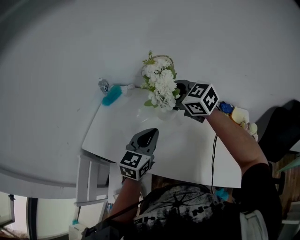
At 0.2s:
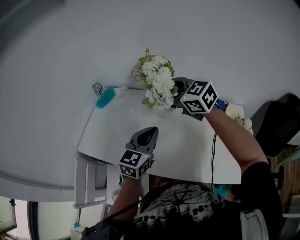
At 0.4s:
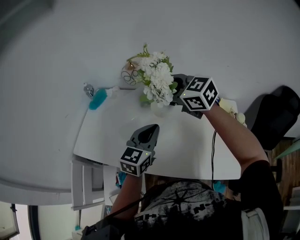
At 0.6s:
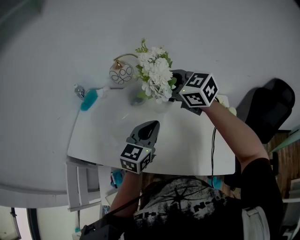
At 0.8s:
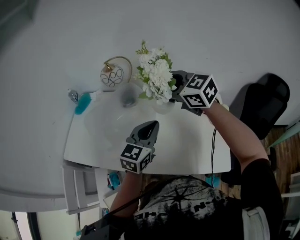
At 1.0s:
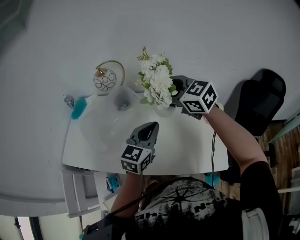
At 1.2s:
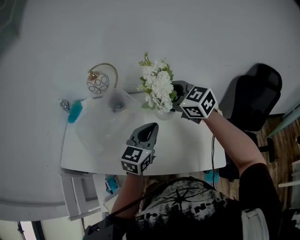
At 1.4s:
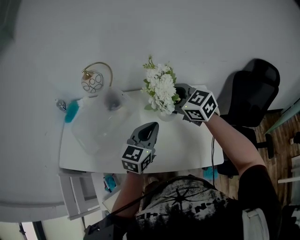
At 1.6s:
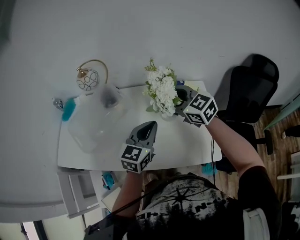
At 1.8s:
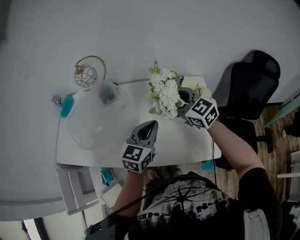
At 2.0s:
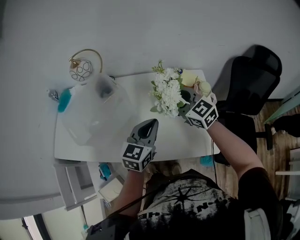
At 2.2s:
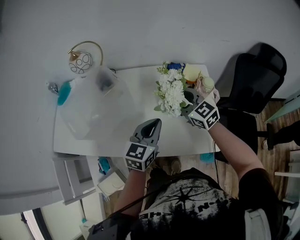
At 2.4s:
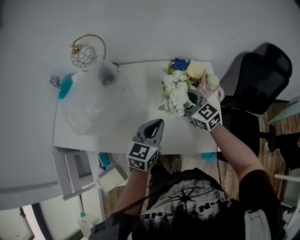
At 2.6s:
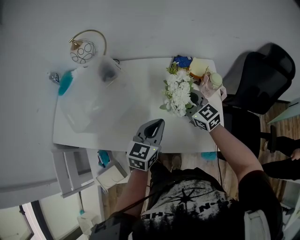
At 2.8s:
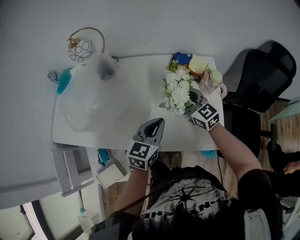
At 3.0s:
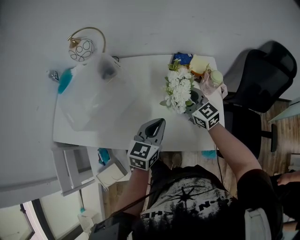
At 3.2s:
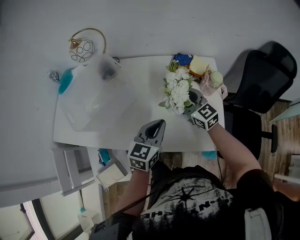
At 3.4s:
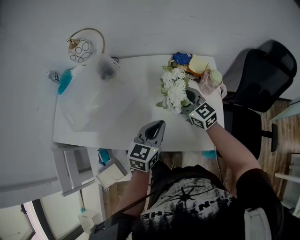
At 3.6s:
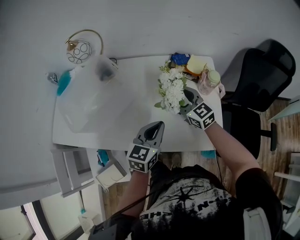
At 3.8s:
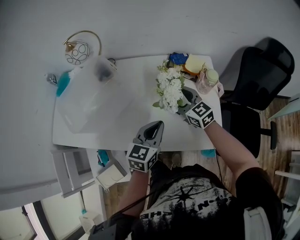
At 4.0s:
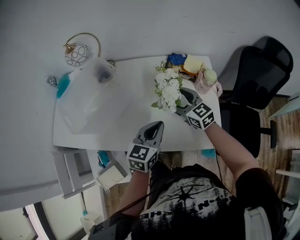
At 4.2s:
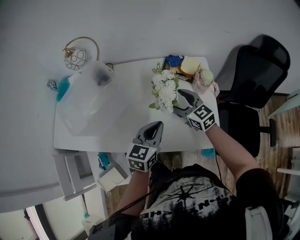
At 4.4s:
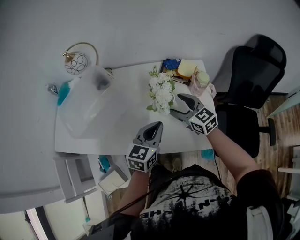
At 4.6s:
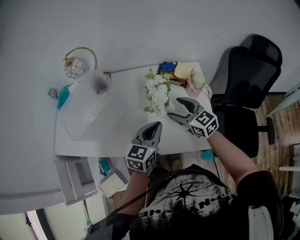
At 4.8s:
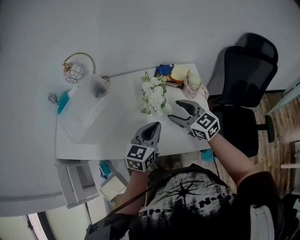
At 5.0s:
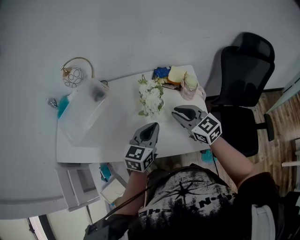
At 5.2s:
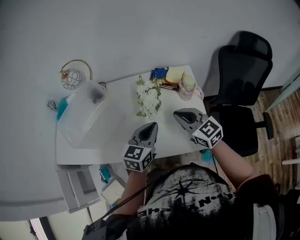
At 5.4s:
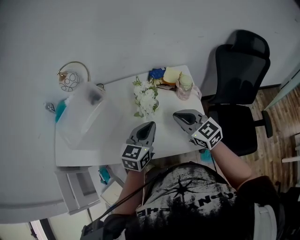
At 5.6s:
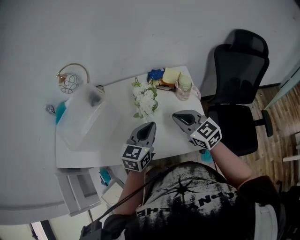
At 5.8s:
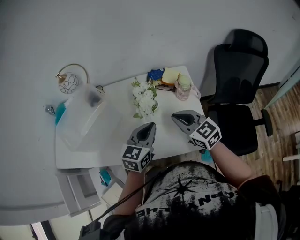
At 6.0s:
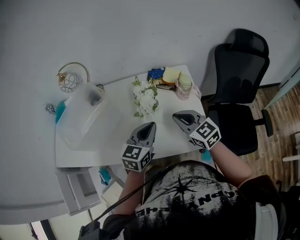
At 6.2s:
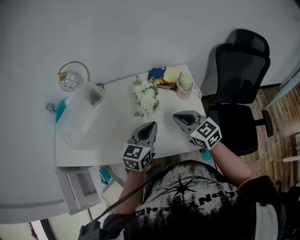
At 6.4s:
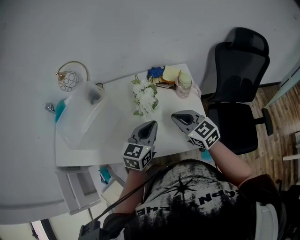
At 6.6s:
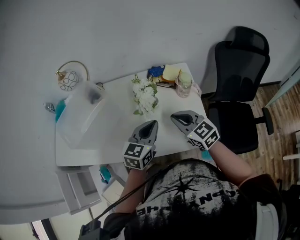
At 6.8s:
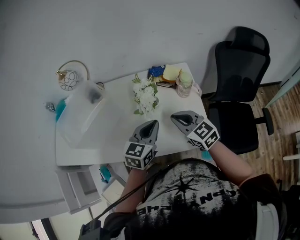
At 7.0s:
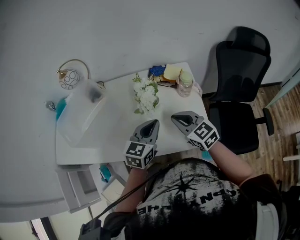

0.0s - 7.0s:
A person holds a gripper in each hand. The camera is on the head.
0.0s - 1.4s: The two grippers go about 25 cm to the right.
1.4s - 2.8s: The right gripper goes approximately 20 cm downward. Meanwhile the left gripper heads downward, covering approximately 10 cm.
2.8s - 4.2s: The grippers move only a little.
4.2s - 5.6s: The right gripper shifts approximately 15 cm backward, upward and to the right, and closes its fingers. The left gripper changes place by roughly 5 cm.
5.6s - 7.0s: The grippers move only a little.

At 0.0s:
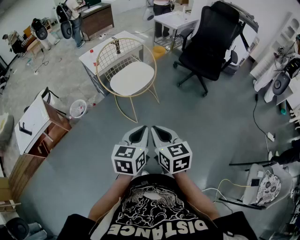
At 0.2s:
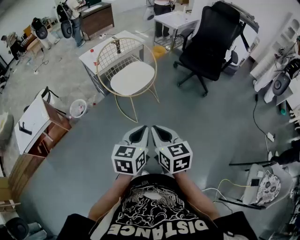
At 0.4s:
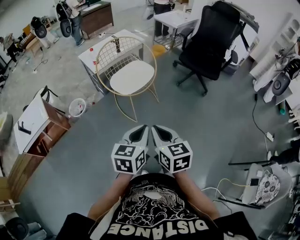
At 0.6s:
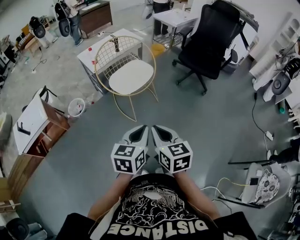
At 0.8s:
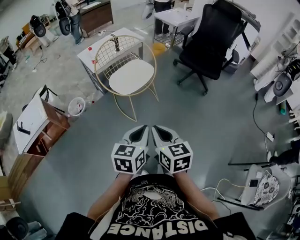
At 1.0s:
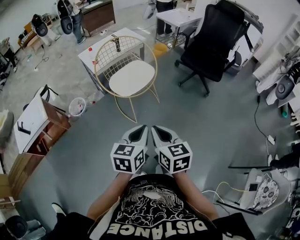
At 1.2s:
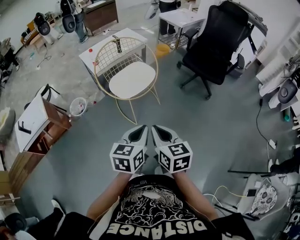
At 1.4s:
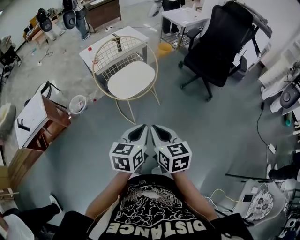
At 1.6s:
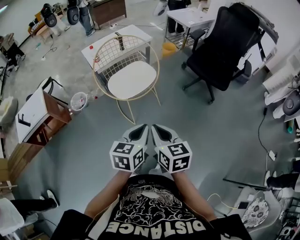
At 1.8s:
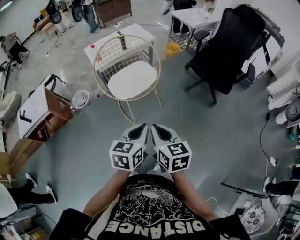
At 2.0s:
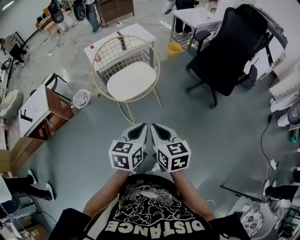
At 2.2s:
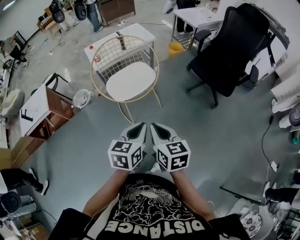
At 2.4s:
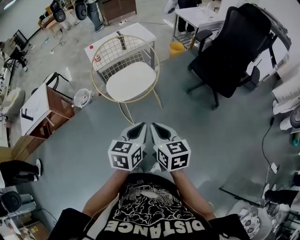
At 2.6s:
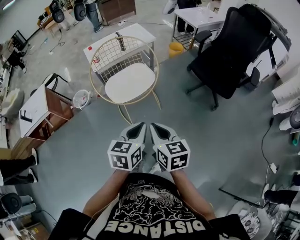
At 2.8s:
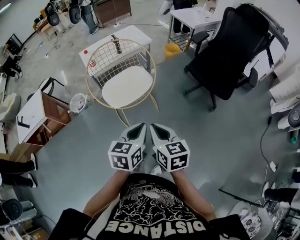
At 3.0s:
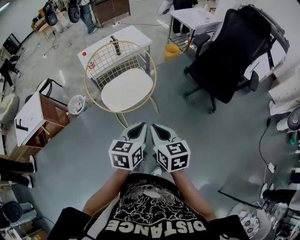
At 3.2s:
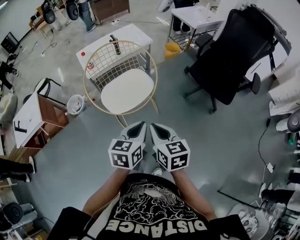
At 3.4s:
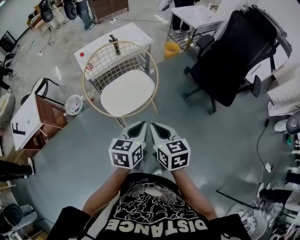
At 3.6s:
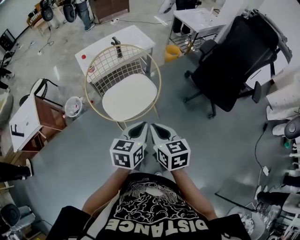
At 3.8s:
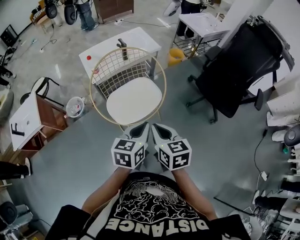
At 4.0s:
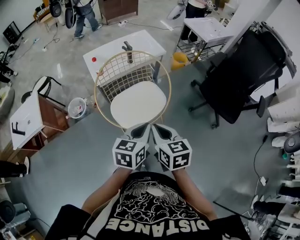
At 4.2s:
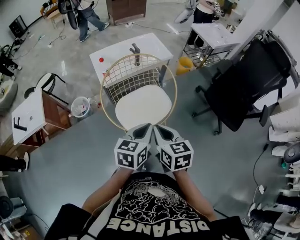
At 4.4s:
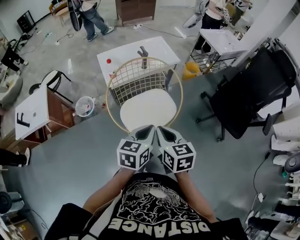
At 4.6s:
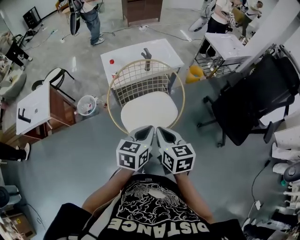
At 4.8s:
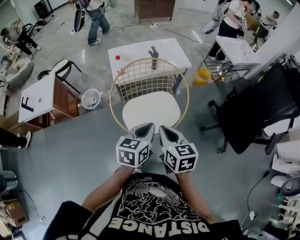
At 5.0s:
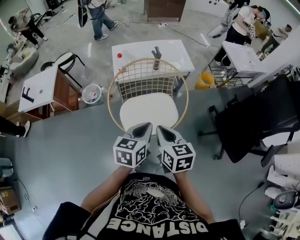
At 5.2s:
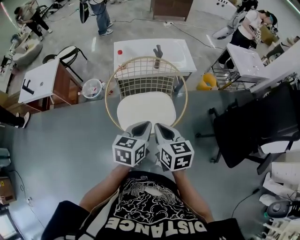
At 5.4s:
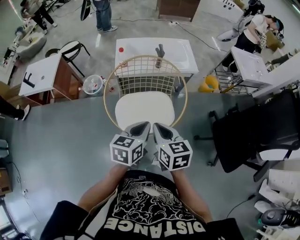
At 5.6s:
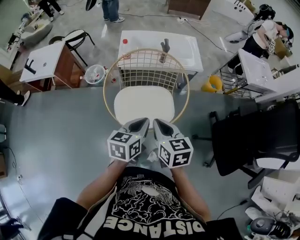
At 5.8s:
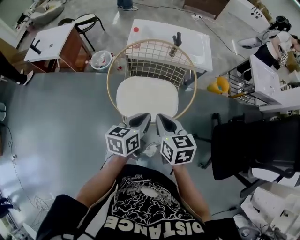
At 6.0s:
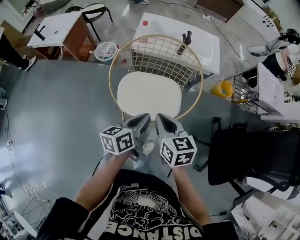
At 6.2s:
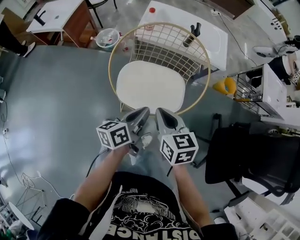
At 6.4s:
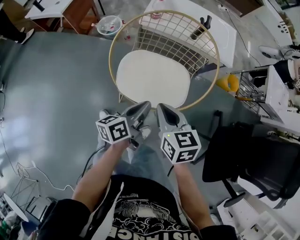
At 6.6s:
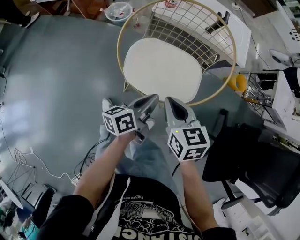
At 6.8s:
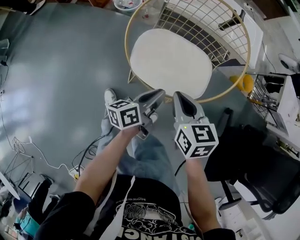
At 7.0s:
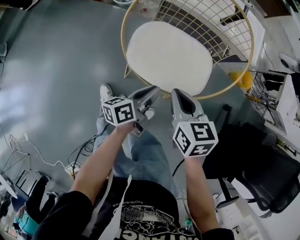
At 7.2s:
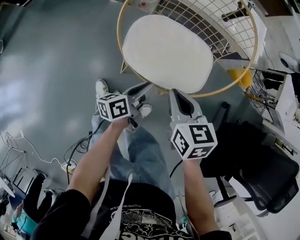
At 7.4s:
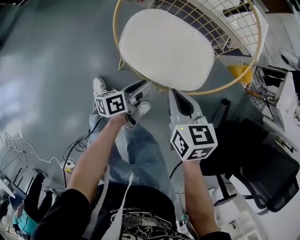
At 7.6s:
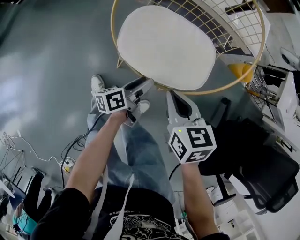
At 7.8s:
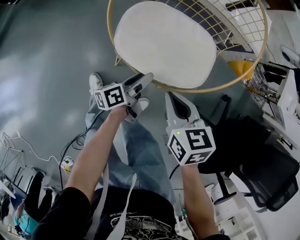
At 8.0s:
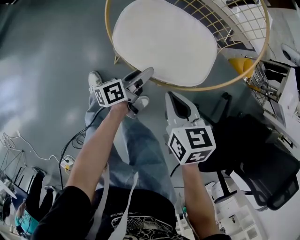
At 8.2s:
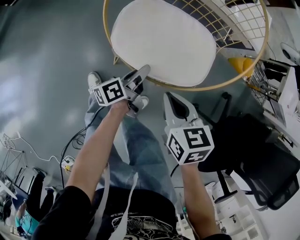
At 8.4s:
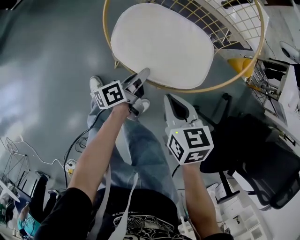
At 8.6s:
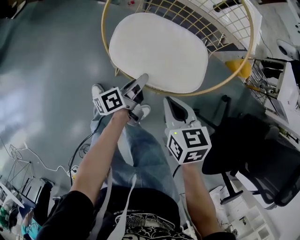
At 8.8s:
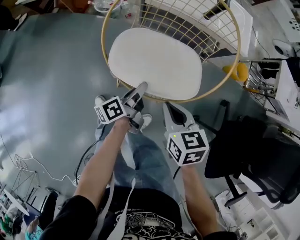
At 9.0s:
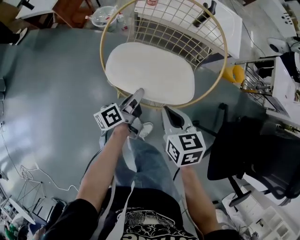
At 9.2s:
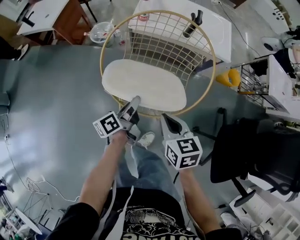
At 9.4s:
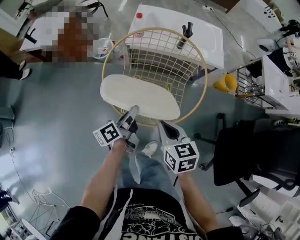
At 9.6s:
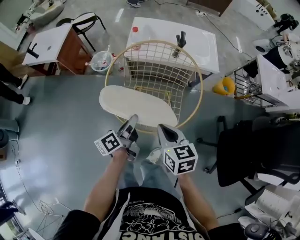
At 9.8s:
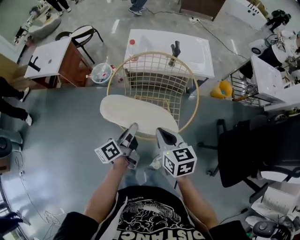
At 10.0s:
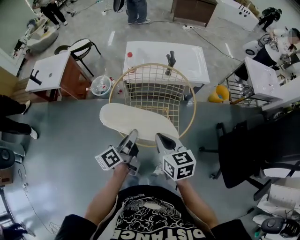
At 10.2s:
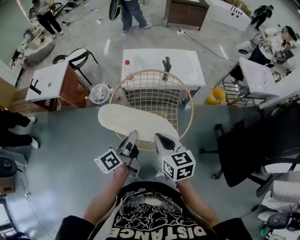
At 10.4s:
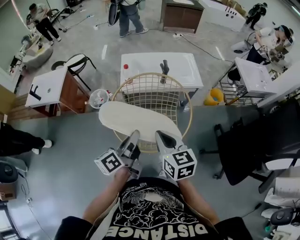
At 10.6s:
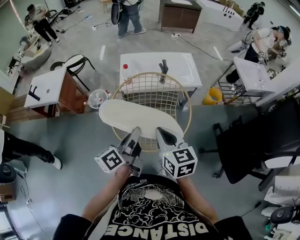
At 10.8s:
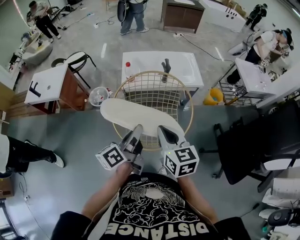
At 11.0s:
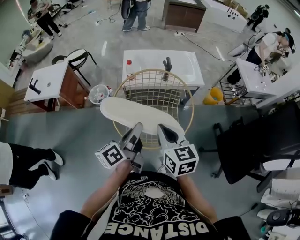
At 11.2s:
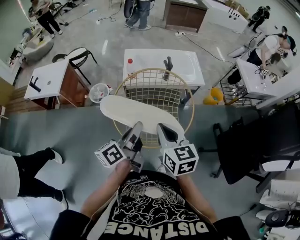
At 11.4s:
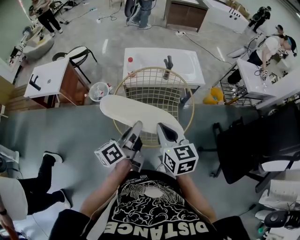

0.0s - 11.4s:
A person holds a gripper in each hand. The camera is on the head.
0.0s - 1.4s: The two grippers go some 10 cm forward.
1.4s - 2.8s: Both grippers travel together forward and to the right, some 15 cm.
2.8s - 4.2s: The two grippers go some 20 cm forward and to the left.
4.2s - 5.6s: The right gripper changes place by roughly 10 cm, and changes its angle by approximately 30 degrees. The left gripper shifts by approximately 10 cm, and turns by some 30 degrees.
5.6s - 7.2s: The right gripper is displaced downward by about 15 cm, and swivels about 20 degrees. Meanwhile the left gripper heads downward, covering about 25 cm, twists roughly 40 degrees counterclockwise, seen from behind, and opens its fingers.
7.2s - 8.6s: The left gripper opens, then closes again.
8.6s - 10.0s: Both grippers travel together upward, approximately 20 cm. The right gripper rotates some 20 degrees.
10.0s - 11.4s: Both grippers travel together upward, approximately 10 cm.

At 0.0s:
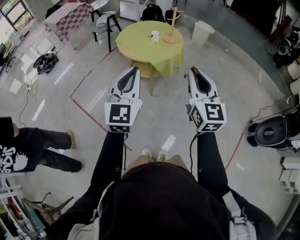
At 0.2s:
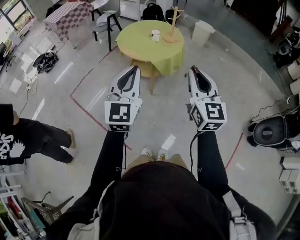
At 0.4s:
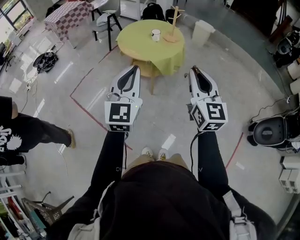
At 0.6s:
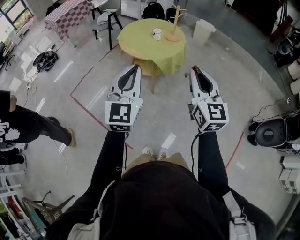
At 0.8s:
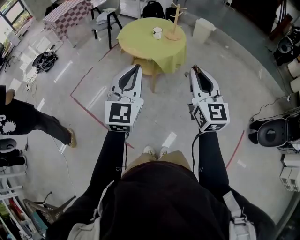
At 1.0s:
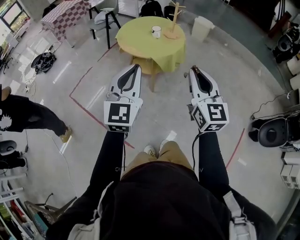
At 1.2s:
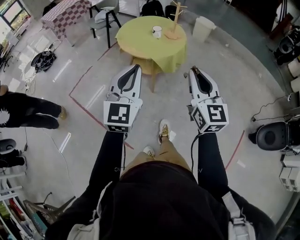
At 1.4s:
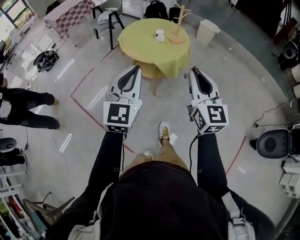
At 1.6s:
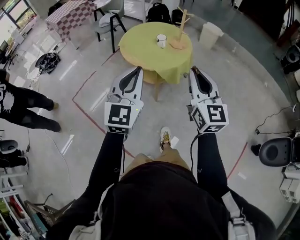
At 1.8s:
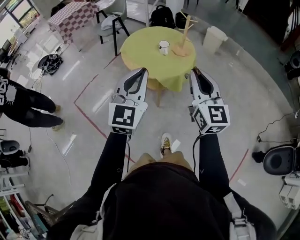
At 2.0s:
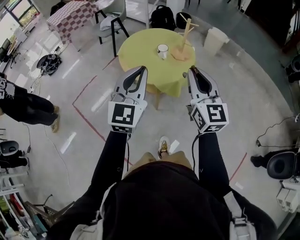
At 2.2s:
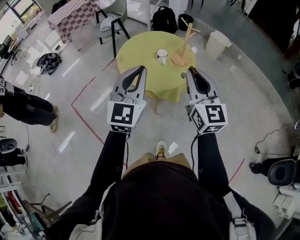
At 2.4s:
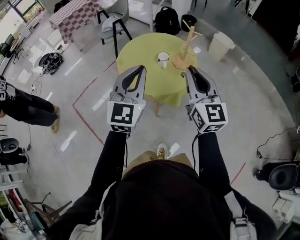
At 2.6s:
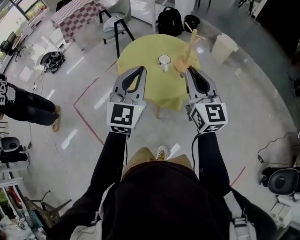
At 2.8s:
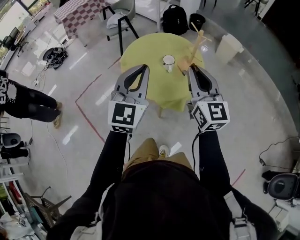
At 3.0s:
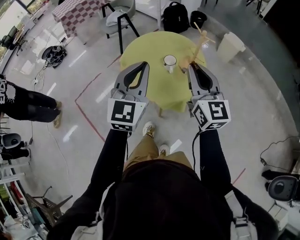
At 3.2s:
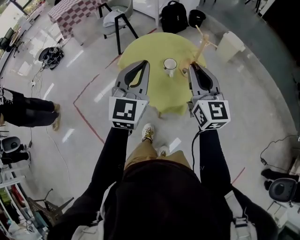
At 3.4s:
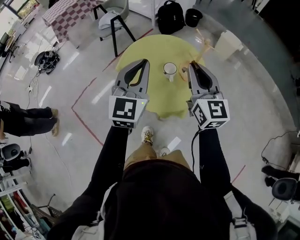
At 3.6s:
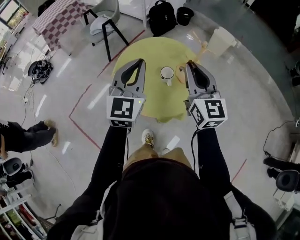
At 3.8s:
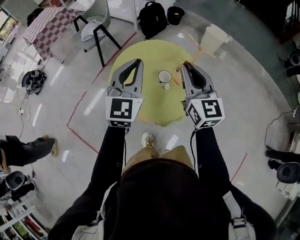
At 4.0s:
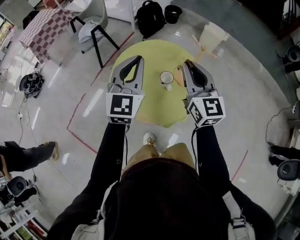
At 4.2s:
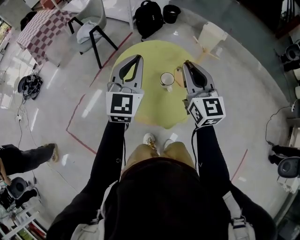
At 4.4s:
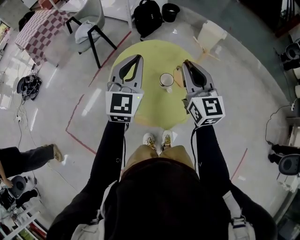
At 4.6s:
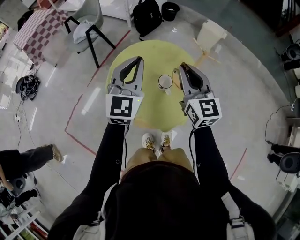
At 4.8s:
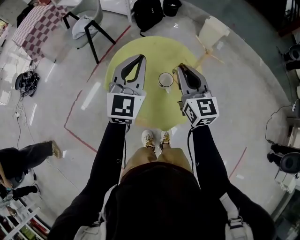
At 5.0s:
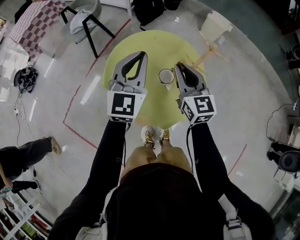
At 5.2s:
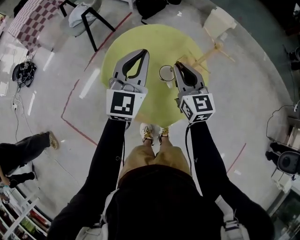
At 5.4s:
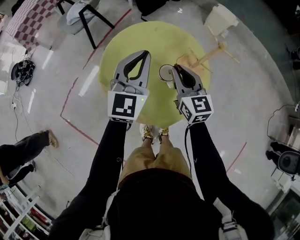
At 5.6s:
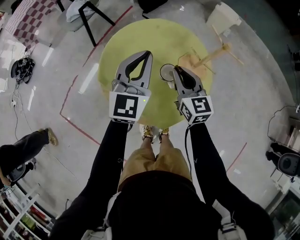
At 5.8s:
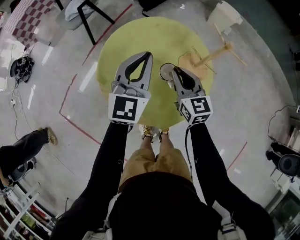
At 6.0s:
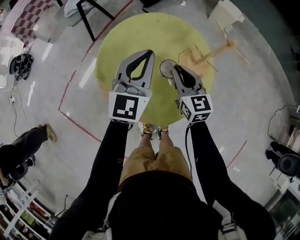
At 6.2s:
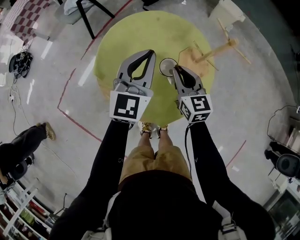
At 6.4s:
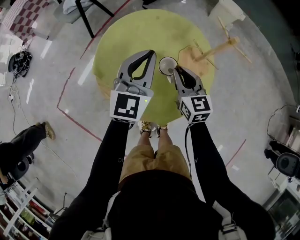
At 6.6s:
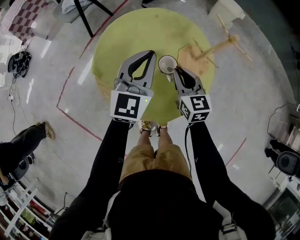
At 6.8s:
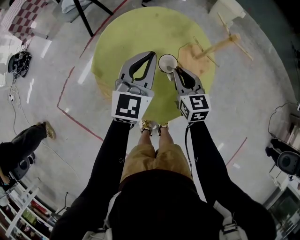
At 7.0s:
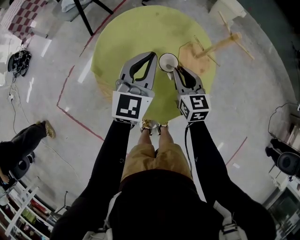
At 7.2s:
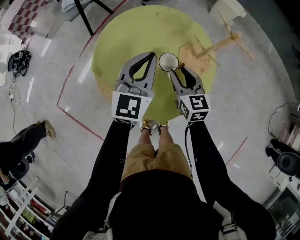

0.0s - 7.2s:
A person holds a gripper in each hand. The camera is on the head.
0.0s - 1.4s: Both grippers move forward, about 5 cm.
1.4s - 2.8s: The two grippers go about 30 cm forward.
2.8s - 4.4s: Both grippers move forward, approximately 20 cm.
4.4s - 5.8s: The left gripper shifts roughly 10 cm downward, while the right gripper travels downward by approximately 20 cm.
5.8s - 7.2s: The right gripper moves downward, about 5 cm, and opens up; the left gripper ends up about 5 cm from where it was.
